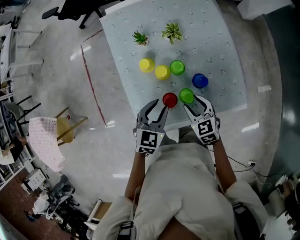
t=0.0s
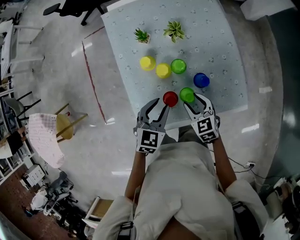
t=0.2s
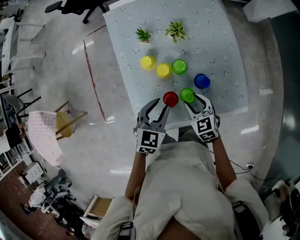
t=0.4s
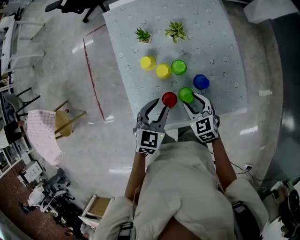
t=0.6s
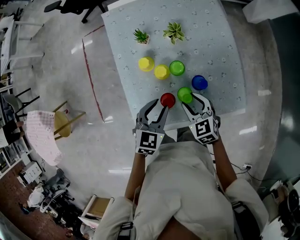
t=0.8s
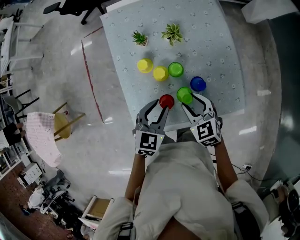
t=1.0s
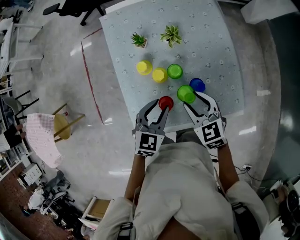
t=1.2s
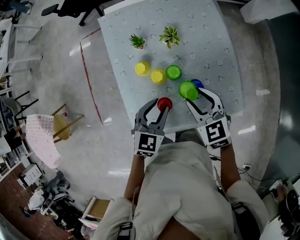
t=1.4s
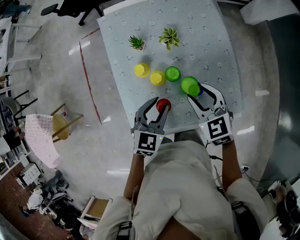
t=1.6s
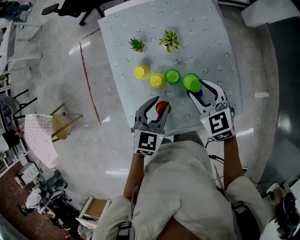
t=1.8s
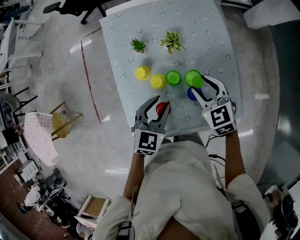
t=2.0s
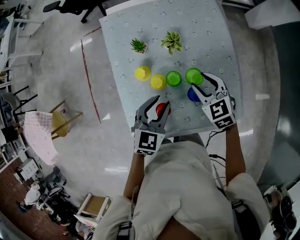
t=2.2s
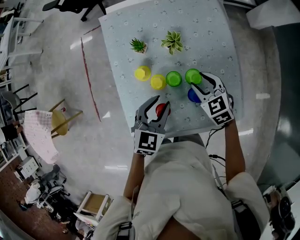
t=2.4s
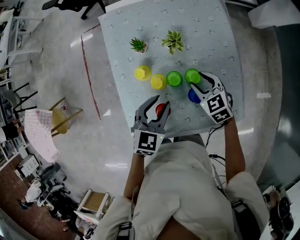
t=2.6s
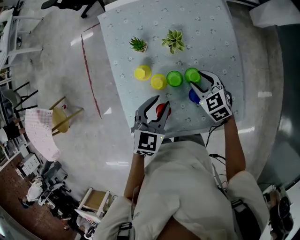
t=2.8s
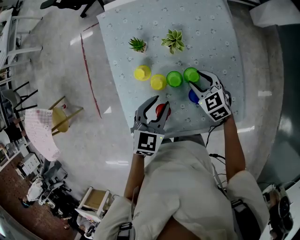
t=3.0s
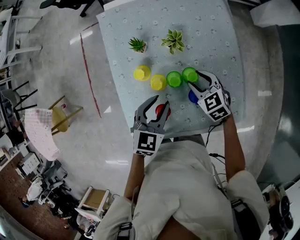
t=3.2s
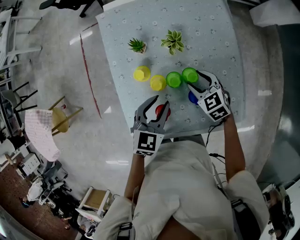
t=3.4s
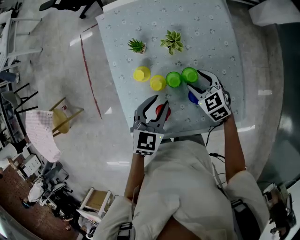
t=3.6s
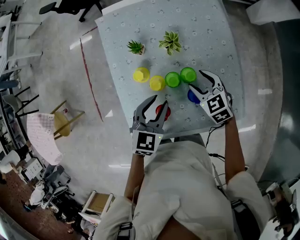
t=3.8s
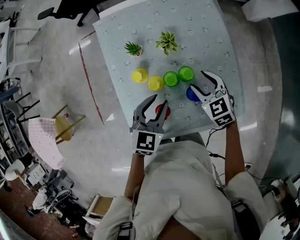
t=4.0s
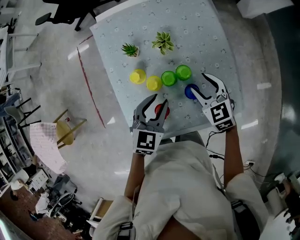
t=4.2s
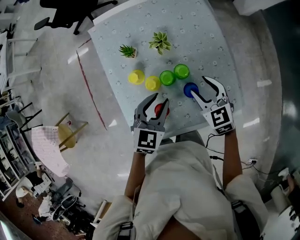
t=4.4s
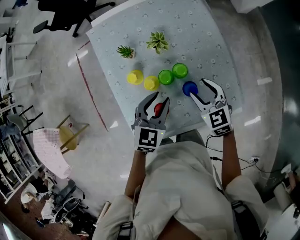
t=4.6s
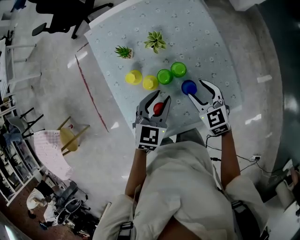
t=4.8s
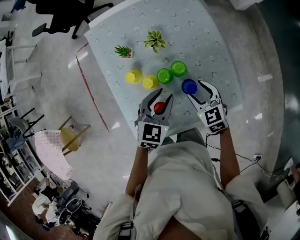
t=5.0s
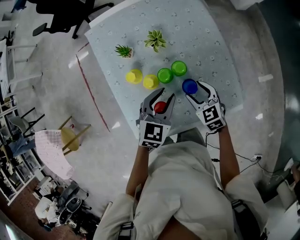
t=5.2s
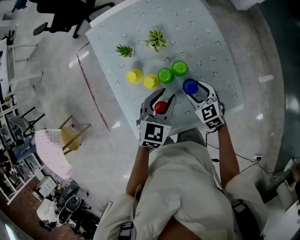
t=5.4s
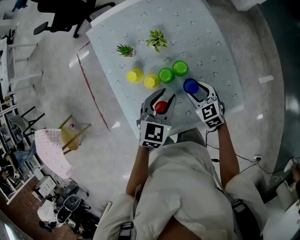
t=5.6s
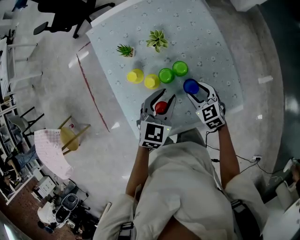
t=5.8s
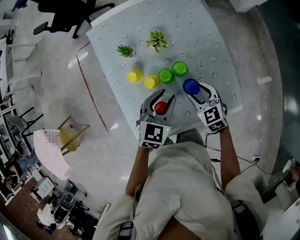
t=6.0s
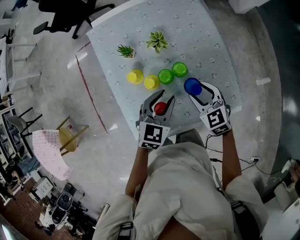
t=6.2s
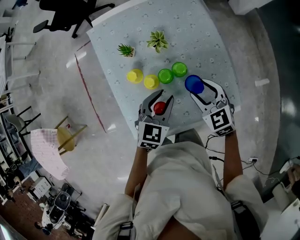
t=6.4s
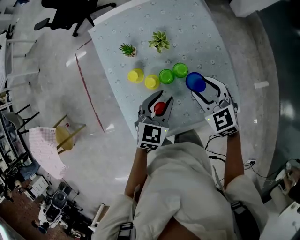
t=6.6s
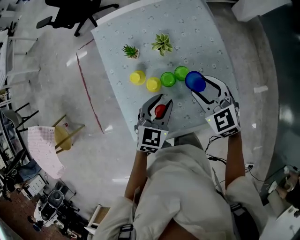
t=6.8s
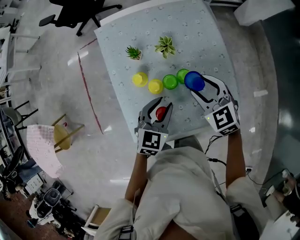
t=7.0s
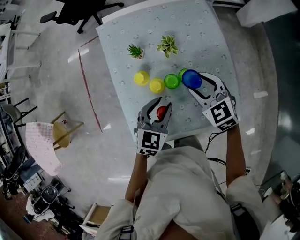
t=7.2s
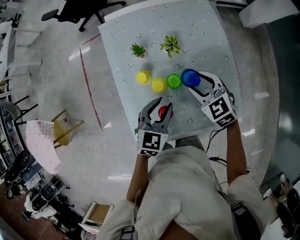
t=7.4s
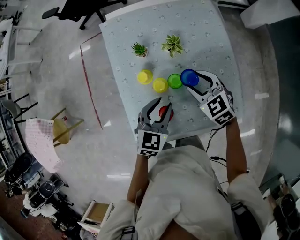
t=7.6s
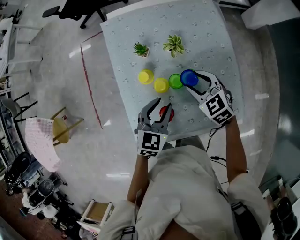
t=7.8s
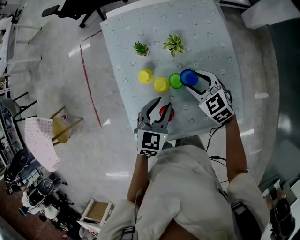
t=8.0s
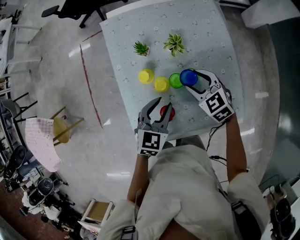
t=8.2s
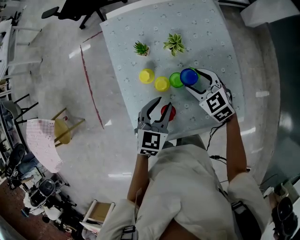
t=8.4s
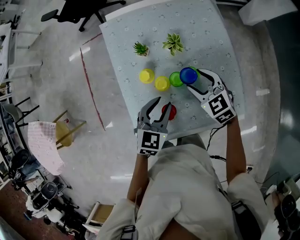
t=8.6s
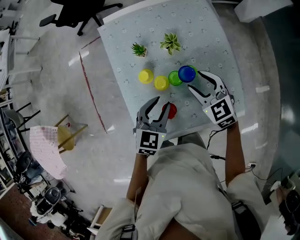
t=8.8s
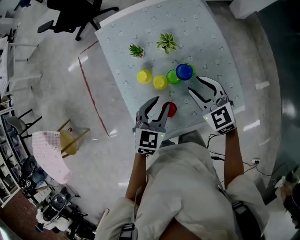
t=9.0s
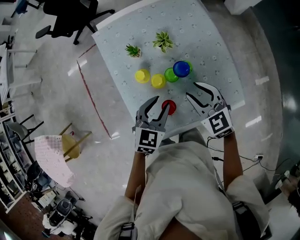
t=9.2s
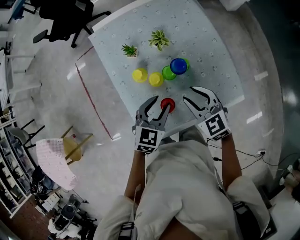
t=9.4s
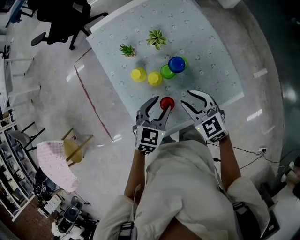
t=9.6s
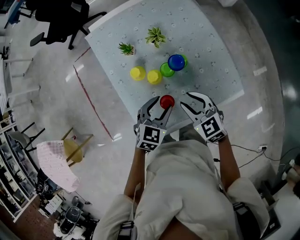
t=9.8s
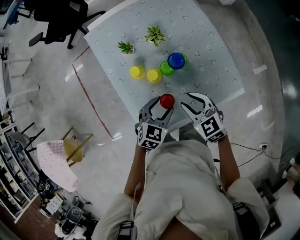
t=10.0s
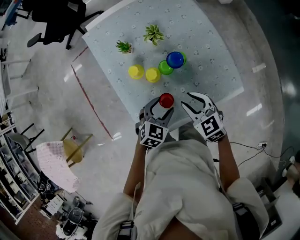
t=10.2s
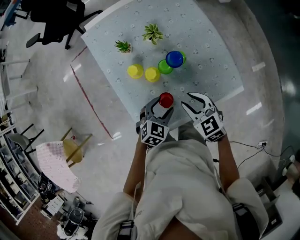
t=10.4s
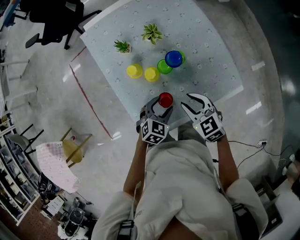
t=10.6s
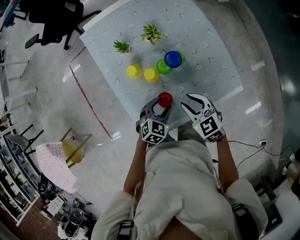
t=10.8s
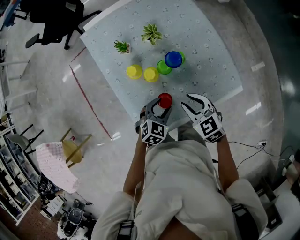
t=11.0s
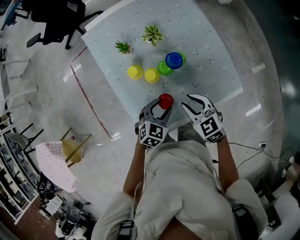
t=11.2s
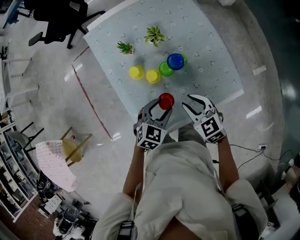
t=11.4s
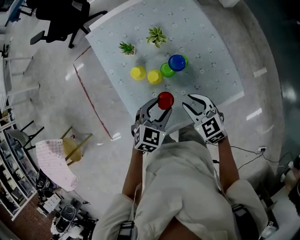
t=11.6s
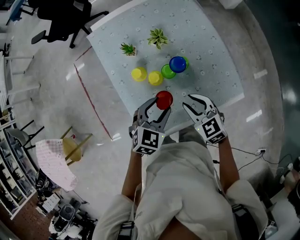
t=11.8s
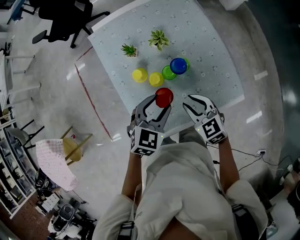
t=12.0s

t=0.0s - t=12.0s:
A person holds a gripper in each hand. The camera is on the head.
t=0.0s - t=1.6s: The left gripper ends up roughly 5 cm from where it was. The right gripper heads upward and forward, covering some 15 cm.
t=1.6s - t=3.0s: The right gripper shifts some 15 cm downward and forward.
t=3.0s - t=4.4s: The right gripper goes approximately 5 cm upward.
t=4.4s - t=6.0s: The right gripper heads downward, covering roughly 5 cm.
t=6.0s - t=7.6s: The right gripper heads forward, upward and to the left, covering about 10 cm, while the left gripper shifts about 5 cm to the left.
t=7.6s - t=9.0s: The right gripper changes place by some 5 cm.
t=9.0s - t=10.4s: The left gripper travels downward and backward by roughly 15 cm, turns by some 20 degrees, and opens its fingers, while the right gripper goes some 15 cm backward and downward.
t=10.4s - t=12.0s: The left gripper shifts approximately 15 cm upward and forward.

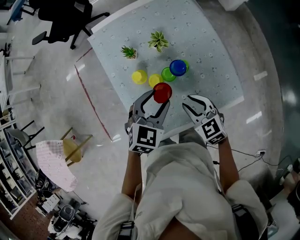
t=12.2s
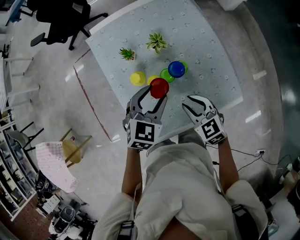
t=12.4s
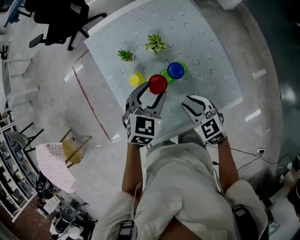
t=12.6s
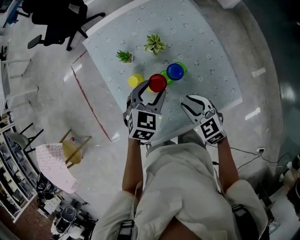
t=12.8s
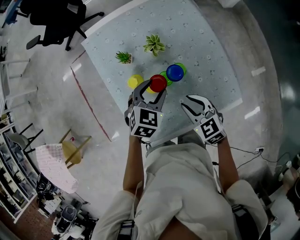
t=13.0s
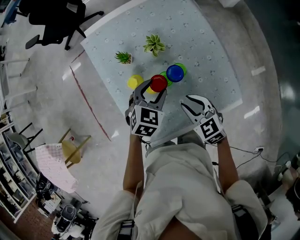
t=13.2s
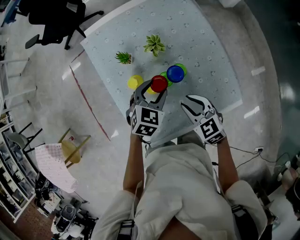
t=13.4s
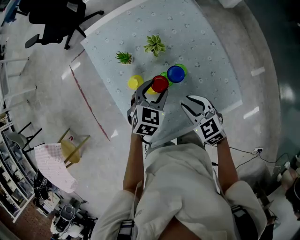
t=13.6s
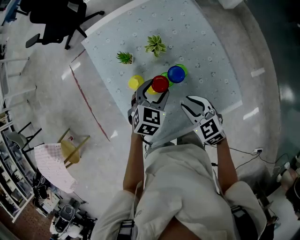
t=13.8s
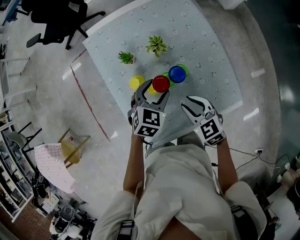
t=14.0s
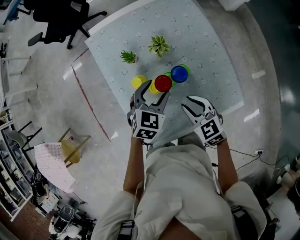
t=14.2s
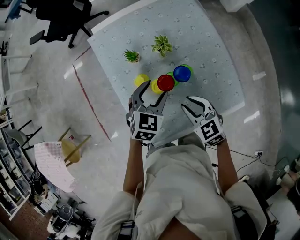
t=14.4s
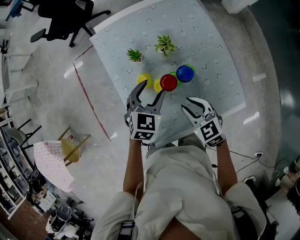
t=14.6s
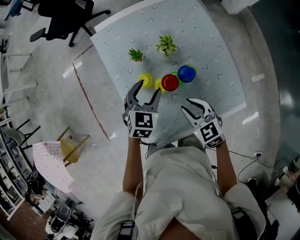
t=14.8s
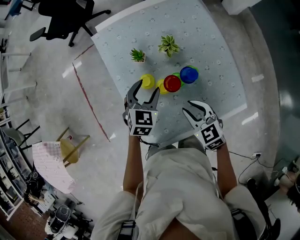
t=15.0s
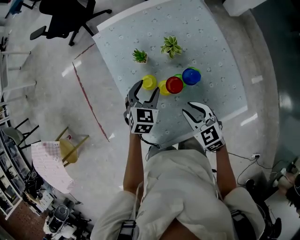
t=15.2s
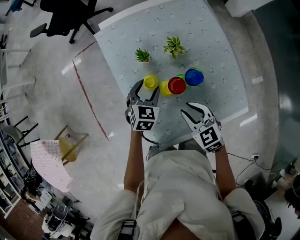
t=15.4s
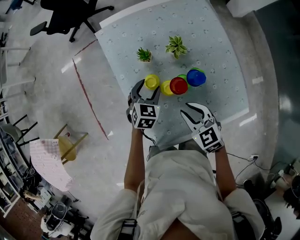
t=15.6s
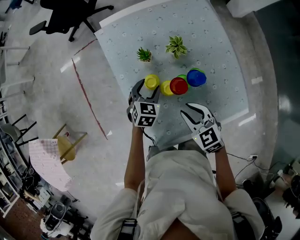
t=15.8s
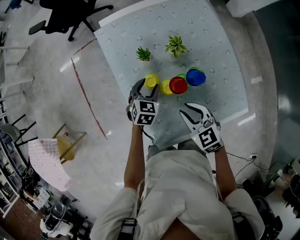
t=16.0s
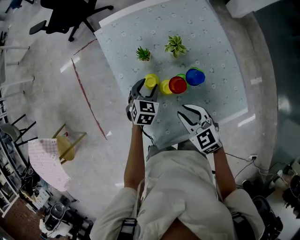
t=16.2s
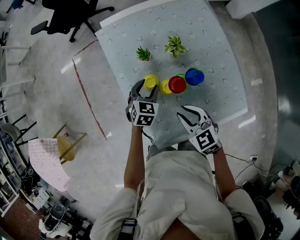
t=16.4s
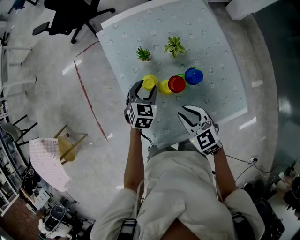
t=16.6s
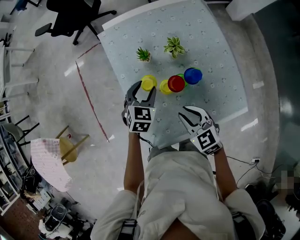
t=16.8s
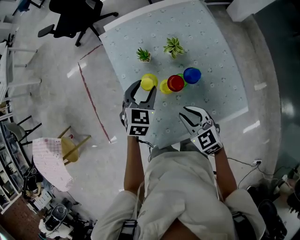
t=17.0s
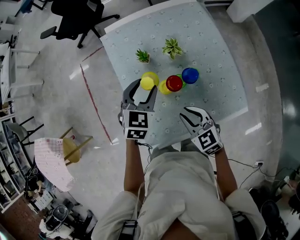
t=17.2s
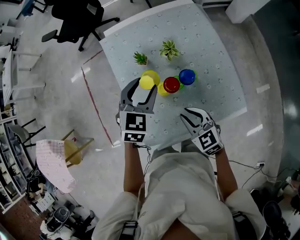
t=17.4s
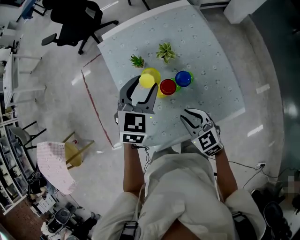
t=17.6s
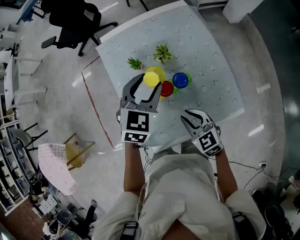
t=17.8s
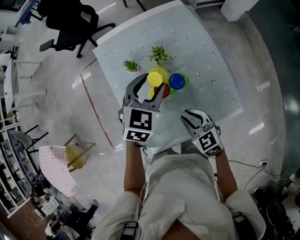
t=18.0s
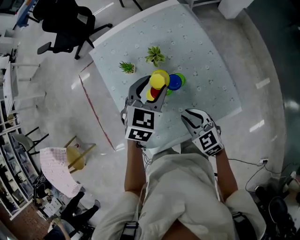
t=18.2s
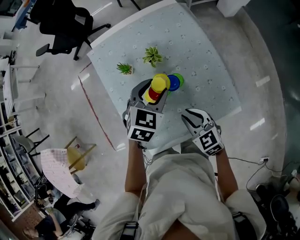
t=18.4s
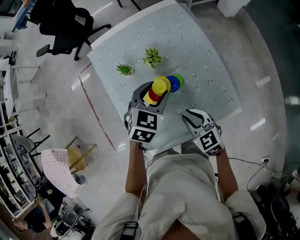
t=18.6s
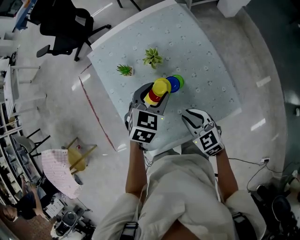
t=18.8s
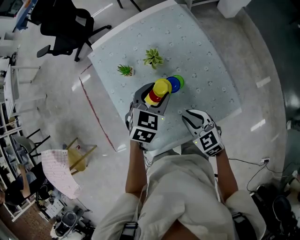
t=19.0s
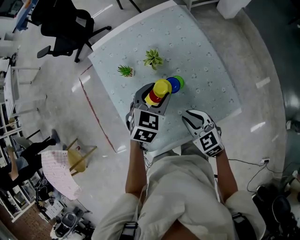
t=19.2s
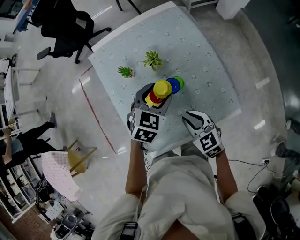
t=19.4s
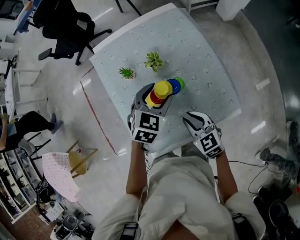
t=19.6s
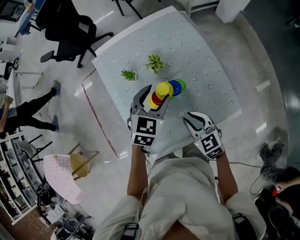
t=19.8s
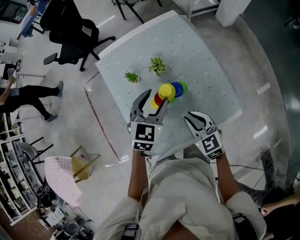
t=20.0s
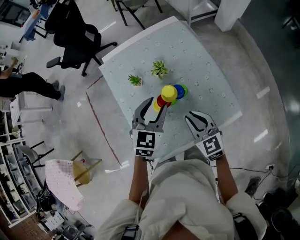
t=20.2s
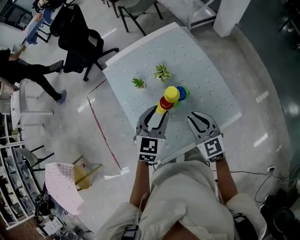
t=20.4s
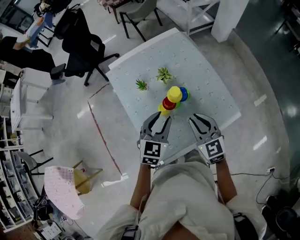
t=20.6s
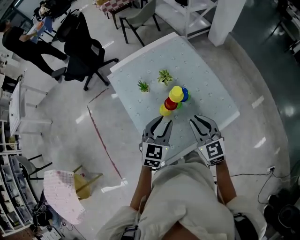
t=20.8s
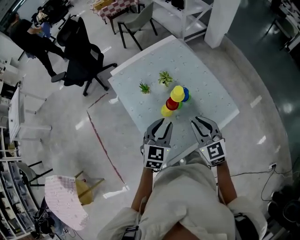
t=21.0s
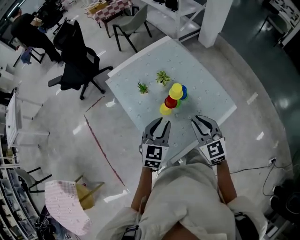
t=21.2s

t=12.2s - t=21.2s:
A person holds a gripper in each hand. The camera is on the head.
t=12.2s - t=13.8s: The left gripper heads downward and forward, covering about 10 cm.
t=13.8s - t=15.2s: The left gripper shifts some 10 cm to the left. Meanwhile the right gripper moves to the left, approximately 5 cm.
t=15.2s - t=16.6s: The grippers make only small movements.
t=16.6s - t=18.2s: The left gripper shifts approximately 20 cm upward and to the right; the right gripper travels to the right by roughly 10 cm.
t=18.2s - t=19.8s: There are only small adjustments of the grippers.
t=19.8s - t=21.2s: The left gripper travels backward and to the left by approximately 15 cm, and closes its fingers. The right gripper shifts approximately 15 cm upward, to the left and backward, and changes its angle by some 30 degrees.

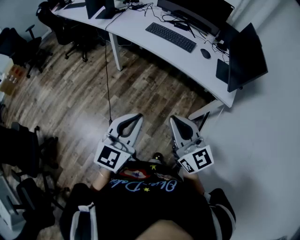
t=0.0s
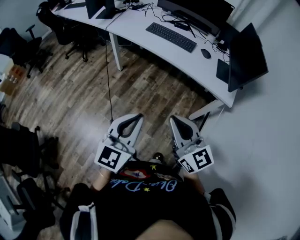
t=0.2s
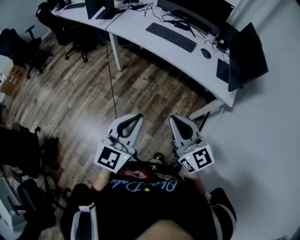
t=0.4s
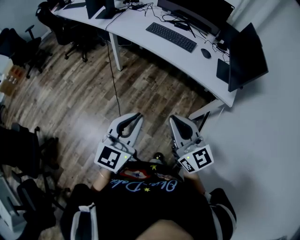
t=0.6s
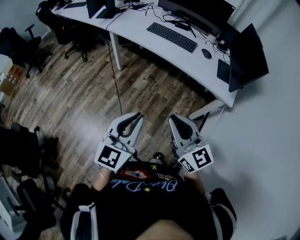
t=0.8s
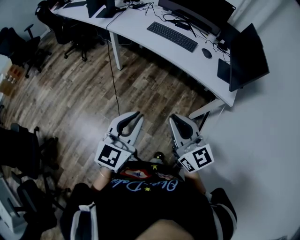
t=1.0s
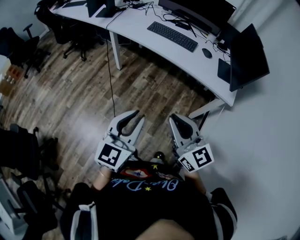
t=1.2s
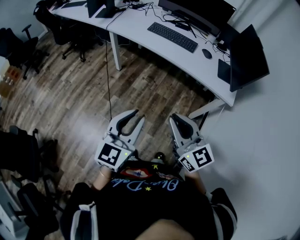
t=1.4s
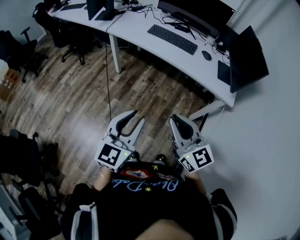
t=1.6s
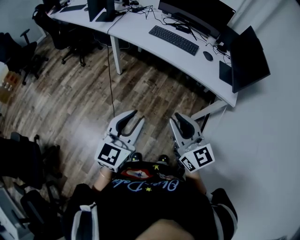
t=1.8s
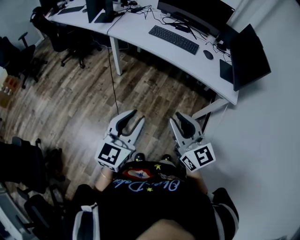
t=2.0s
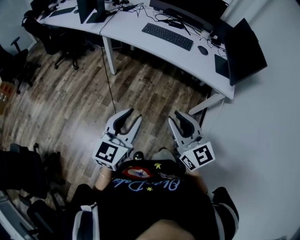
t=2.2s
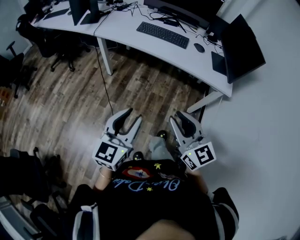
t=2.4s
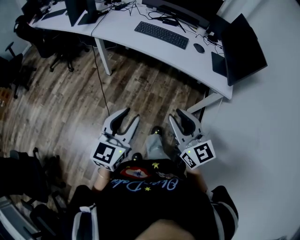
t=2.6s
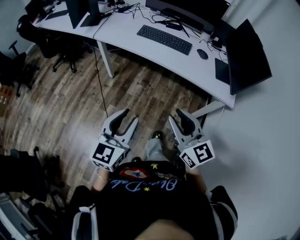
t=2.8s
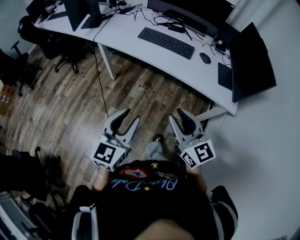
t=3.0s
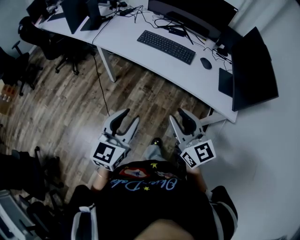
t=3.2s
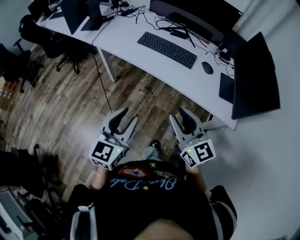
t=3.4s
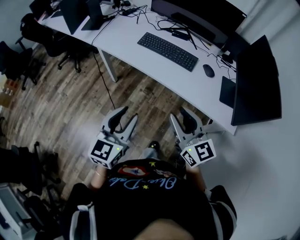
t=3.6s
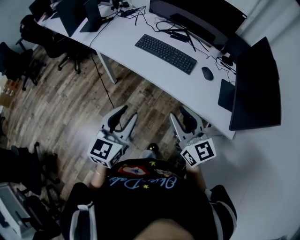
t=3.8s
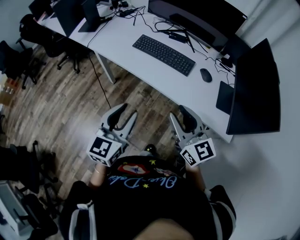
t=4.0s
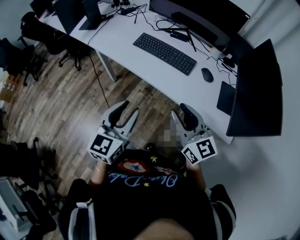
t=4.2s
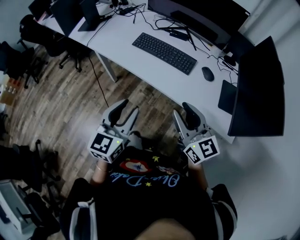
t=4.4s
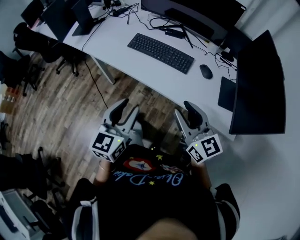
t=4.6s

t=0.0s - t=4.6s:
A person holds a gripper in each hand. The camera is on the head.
t=0.0s - t=1.6s: The grippers both shift to the left by about 5 cm.
t=1.6s - t=3.0s: The grippers both shift forward by some 15 cm. The right gripper opens up.
t=3.0s - t=4.6s: The two grippers go some 20 cm forward and to the right.
